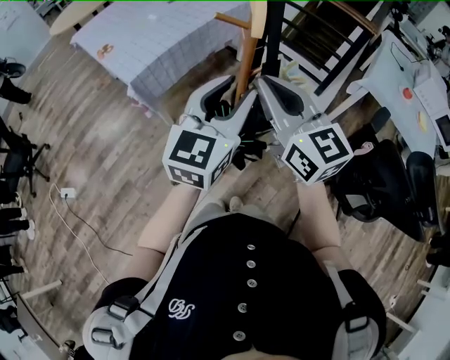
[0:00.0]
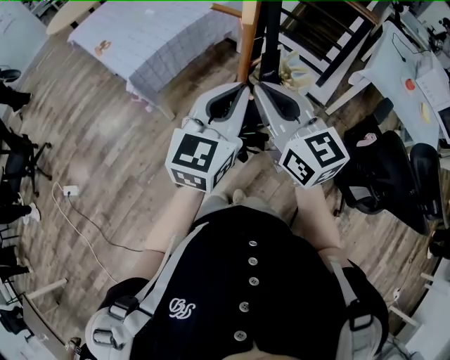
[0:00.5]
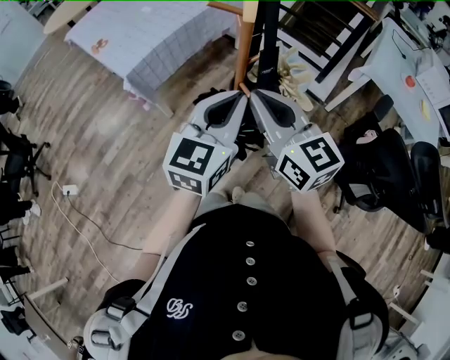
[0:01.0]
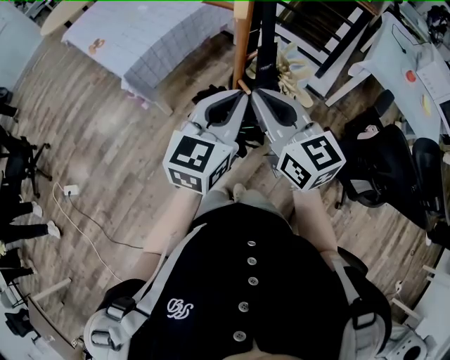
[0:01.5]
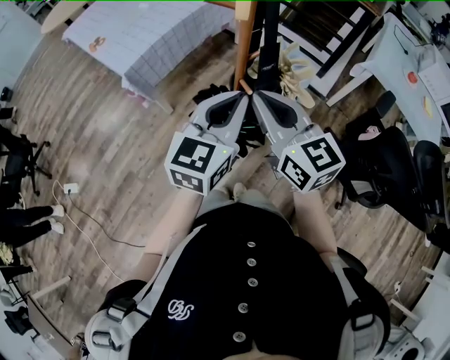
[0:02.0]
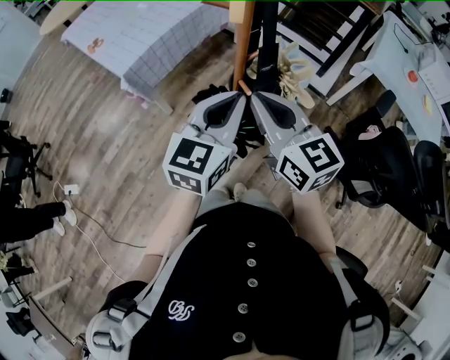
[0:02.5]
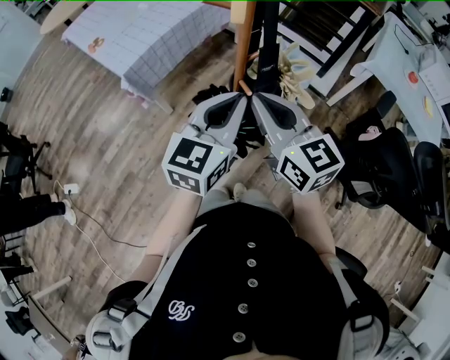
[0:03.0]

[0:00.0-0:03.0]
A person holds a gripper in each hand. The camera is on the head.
0:00.0 to 0:01.5: The two grippers go roughly 5 cm downward. The left gripper closes up.
0:01.5 to 0:03.0: The grippers make only small movements.

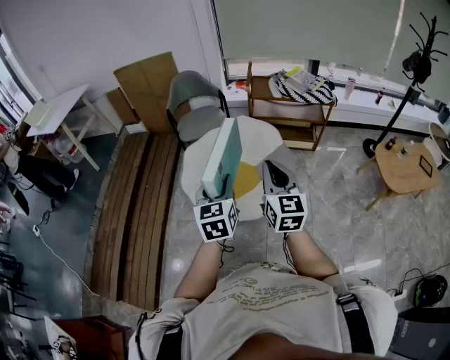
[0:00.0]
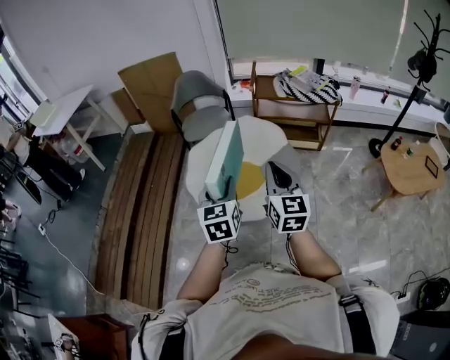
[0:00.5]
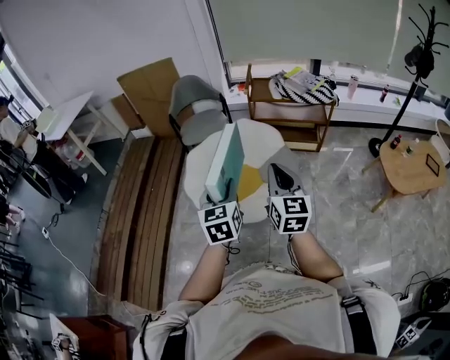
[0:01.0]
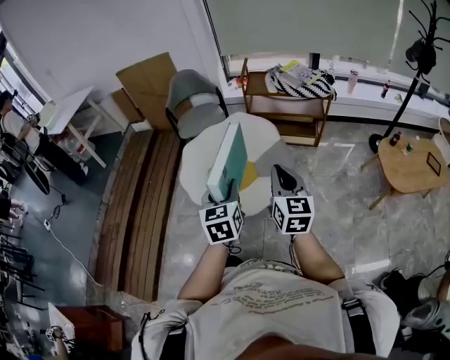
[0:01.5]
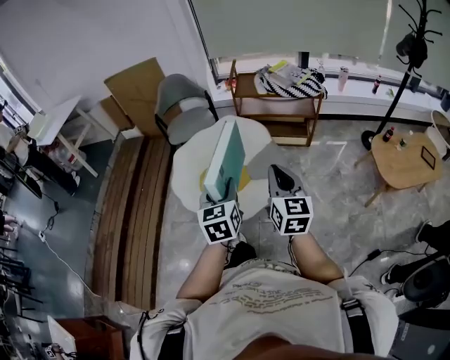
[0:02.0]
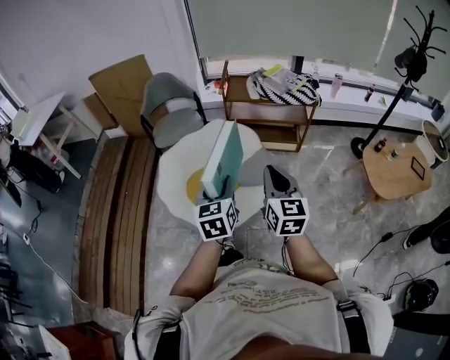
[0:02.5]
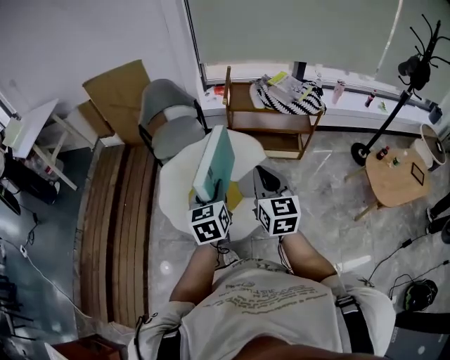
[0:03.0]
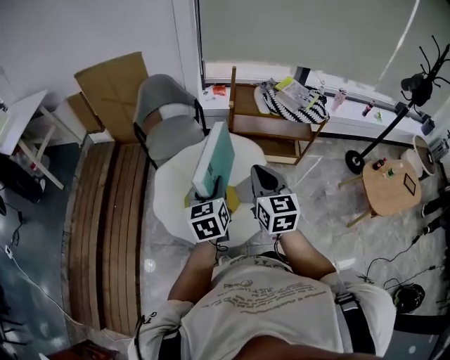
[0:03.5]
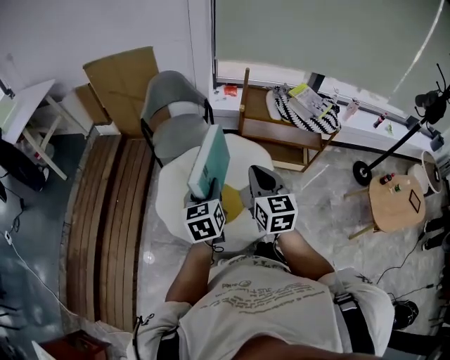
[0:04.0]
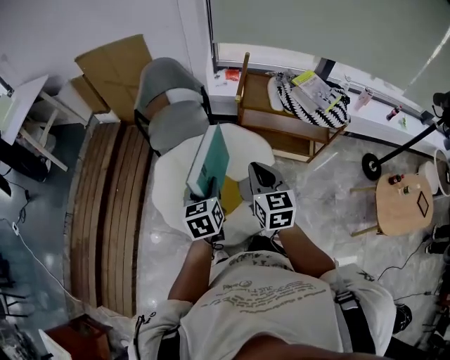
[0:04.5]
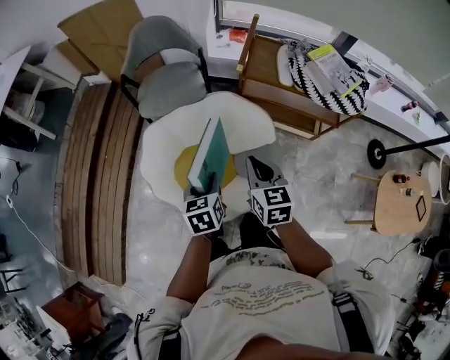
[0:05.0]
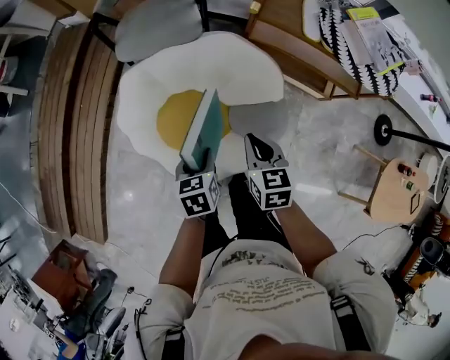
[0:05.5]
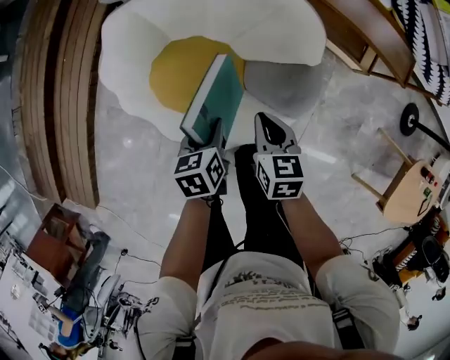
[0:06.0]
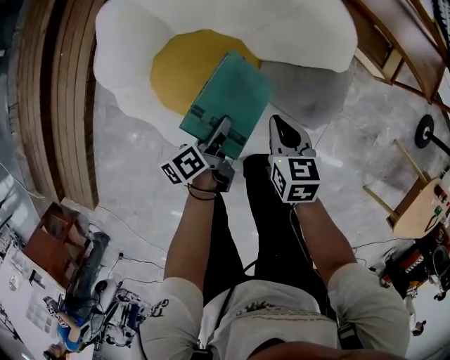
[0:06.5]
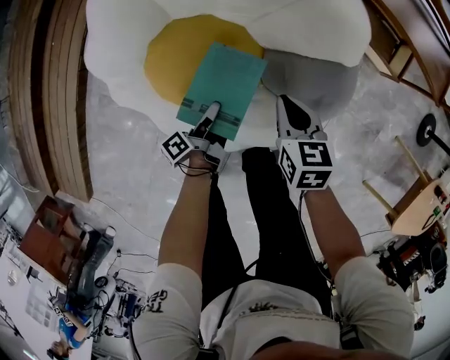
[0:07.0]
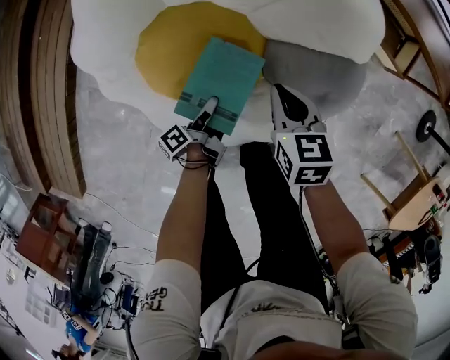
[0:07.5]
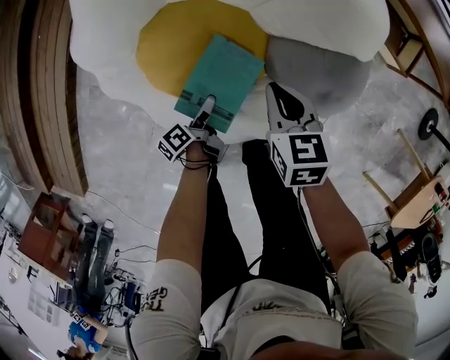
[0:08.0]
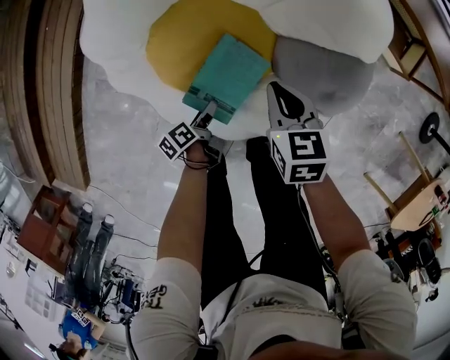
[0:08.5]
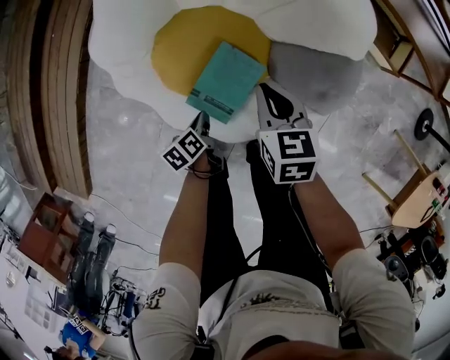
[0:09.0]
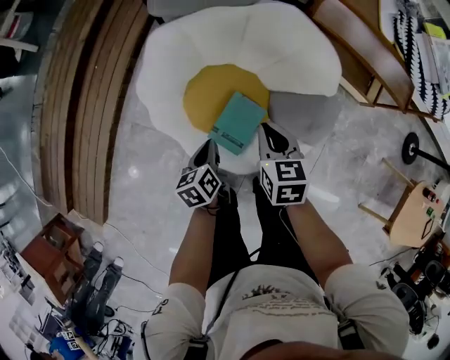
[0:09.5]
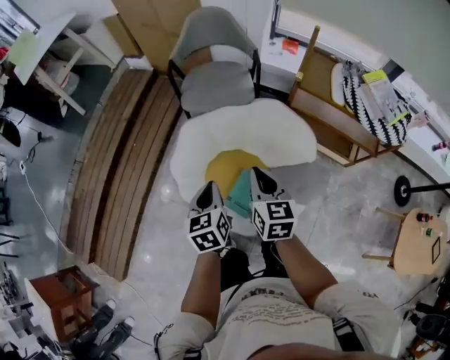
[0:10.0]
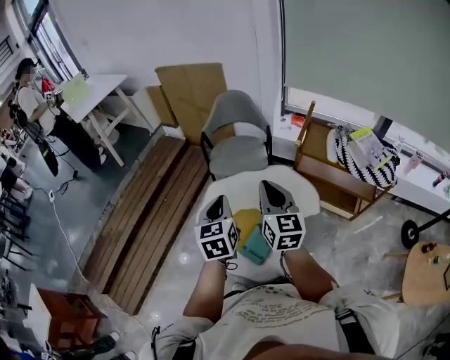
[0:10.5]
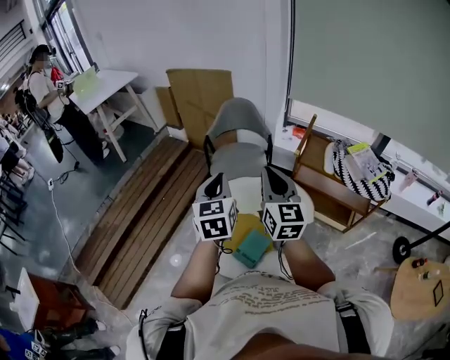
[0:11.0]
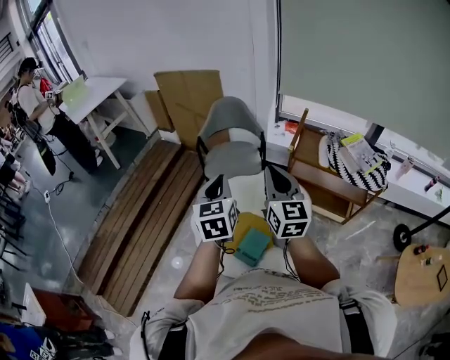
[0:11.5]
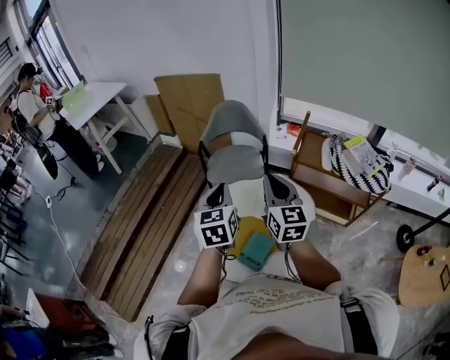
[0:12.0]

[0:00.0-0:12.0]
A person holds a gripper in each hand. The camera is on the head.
0:00.0 to 0:02.0: The two grippers go approximately 15 cm to the right.
0:02.0 to 0:04.0: The two grippers go about 30 cm forward and to the left.
0:04.0 to 0:06.0: Both grippers travel together downward, roughly 40 cm. The right gripper tips its fingers downward by roughly 30 degrees, while the left gripper points its fingers about 30 degrees further downward.
0:06.0 to 0:08.0: The right gripper goes some 15 cm downward. Meanwhile the left gripper goes approximately 30 cm downward, twists roughly 50 degrees counterclockwise, seen from behind, and opens.
0:08.0 to 0:10.0: Both grippers move upward, approximately 50 cm. The right gripper rotates approximately 30 degrees. Meanwhile the left gripper twists approximately 70 degrees clockwise, seen from behind, and closes its fingers.
0:10.0 to 0:12.0: The two grippers go some 25 cm upward. The left gripper swivels approximately 20 degrees, while the right gripper changes its angle by approximately 30 degrees.

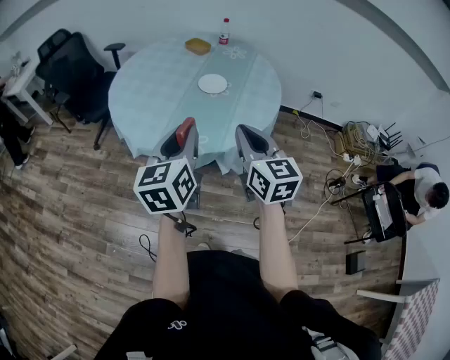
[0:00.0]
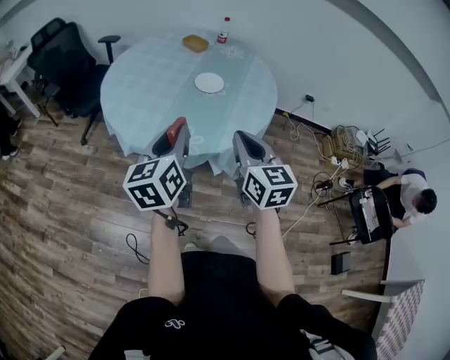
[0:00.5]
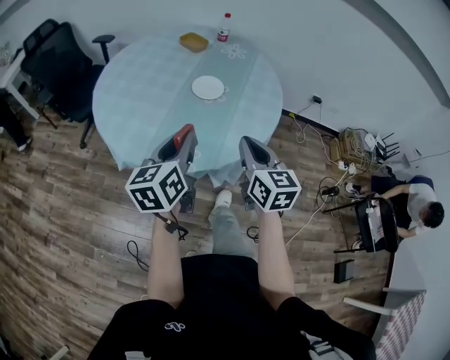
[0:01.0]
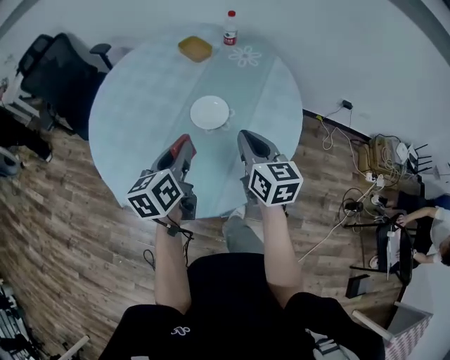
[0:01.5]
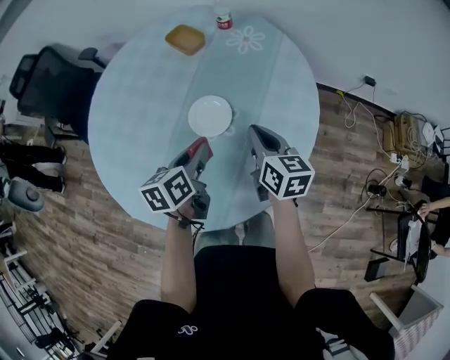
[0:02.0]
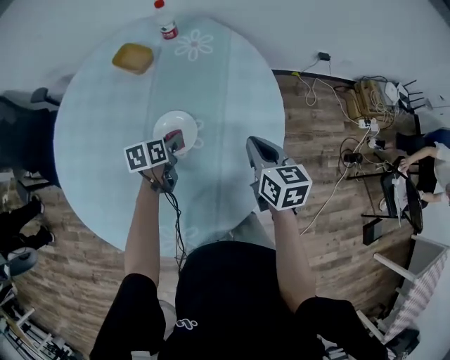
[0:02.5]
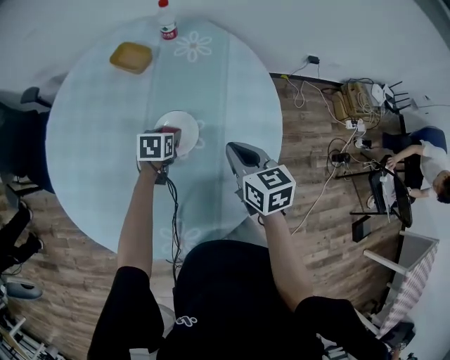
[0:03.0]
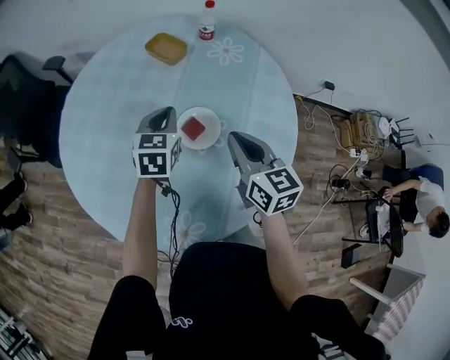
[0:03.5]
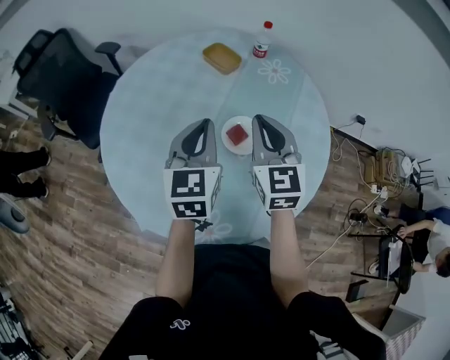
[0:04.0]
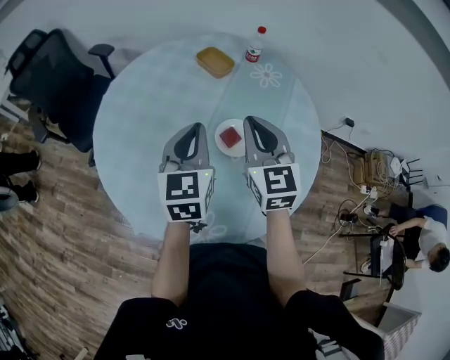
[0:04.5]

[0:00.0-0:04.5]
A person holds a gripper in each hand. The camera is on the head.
0:00.0 to 0:02.0: Both grippers are carried forward, approximately 50 cm. Both grippers move downward, about 20 cm. The right gripper turns by some 30 degrees, while the left gripper swivels approximately 30 degrees.
0:02.0 to 0:04.5: The grippers both shift to the left and upward by some 20 cm. The right gripper changes its angle by roughly 40 degrees, while the left gripper rotates about 40 degrees, and closes its fingers.

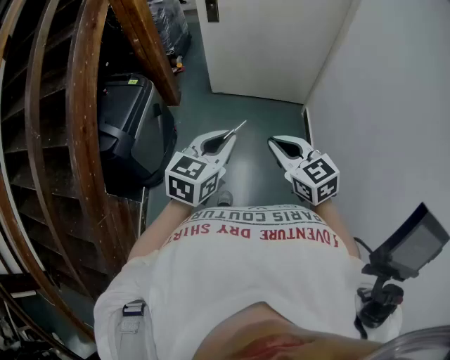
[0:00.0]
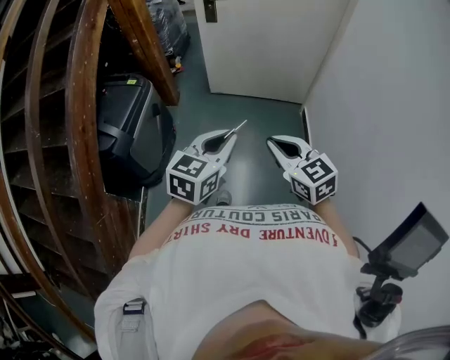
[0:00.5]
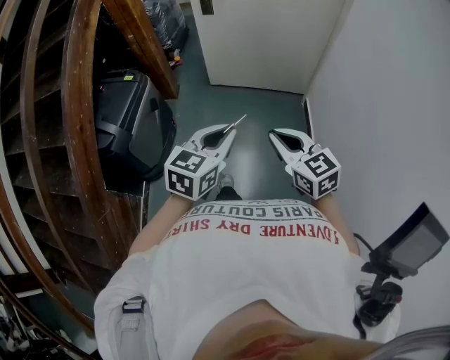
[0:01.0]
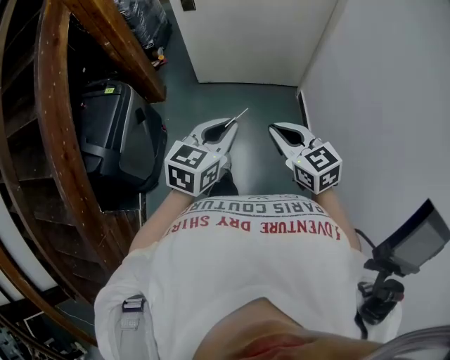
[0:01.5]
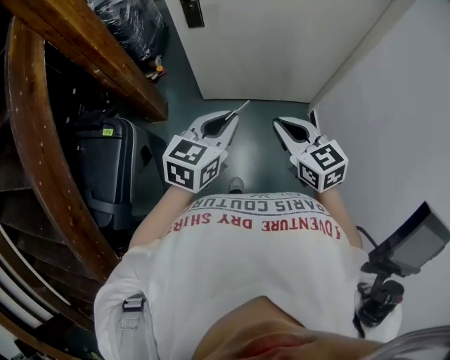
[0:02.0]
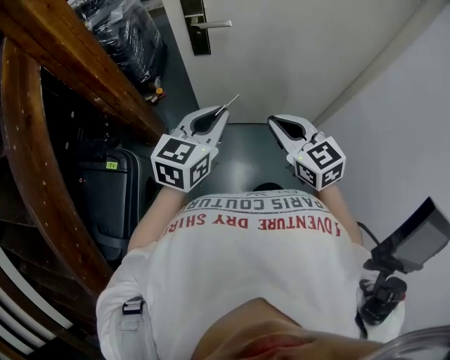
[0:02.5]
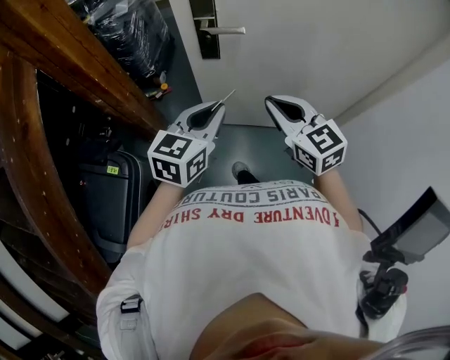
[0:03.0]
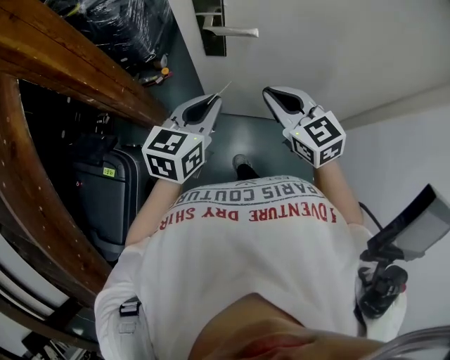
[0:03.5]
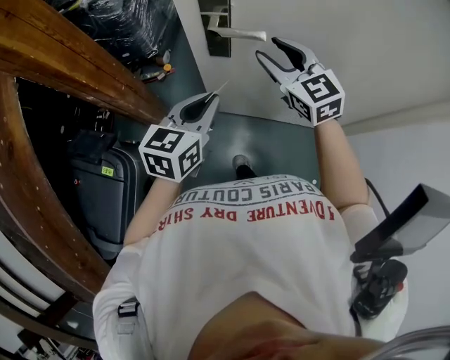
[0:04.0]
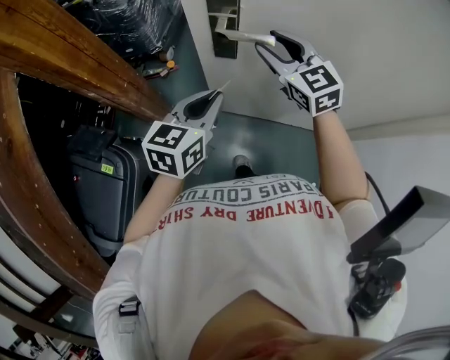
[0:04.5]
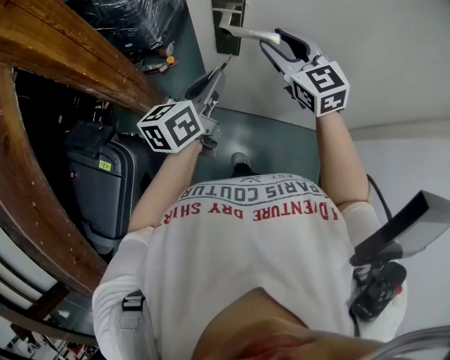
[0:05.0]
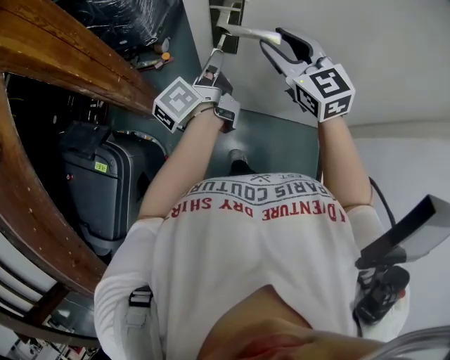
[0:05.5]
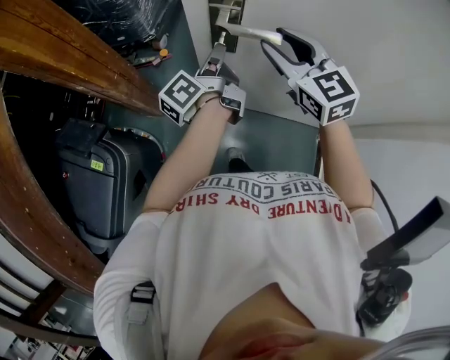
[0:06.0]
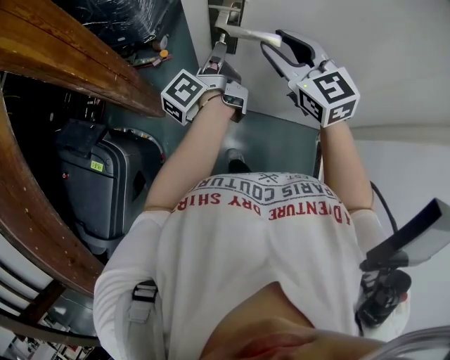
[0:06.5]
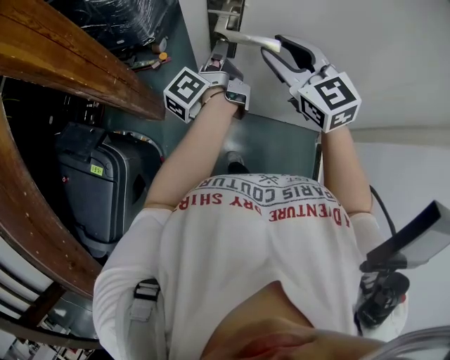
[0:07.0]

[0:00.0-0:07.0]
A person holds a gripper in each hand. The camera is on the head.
0:00.0 to 0:02.0: The pair of grippers is taken forward, roughly 40 cm.
0:02.0 to 0:03.5: The grippers both shift forward by some 35 cm.
0:03.5 to 0:05.0: The right gripper travels forward by some 15 cm, and opens. Meanwhile the left gripper heads forward, covering approximately 10 cm, and turns by approximately 30 degrees.
0:05.0 to 0:07.0: The left gripper goes roughly 10 cm forward, and rolls counterclockwise, seen from behind, by some 50 degrees.
